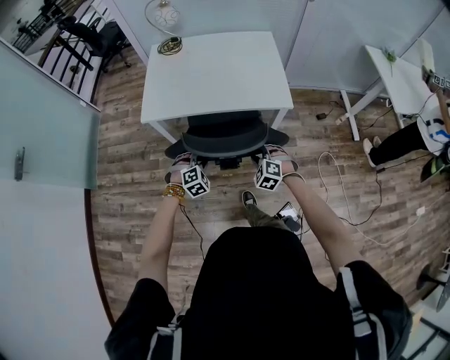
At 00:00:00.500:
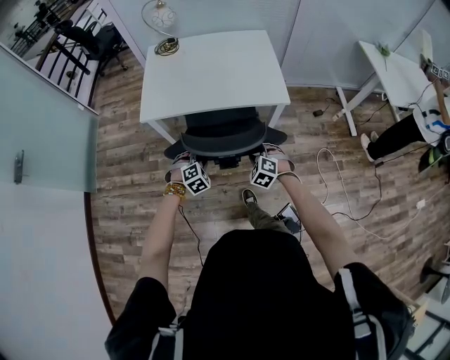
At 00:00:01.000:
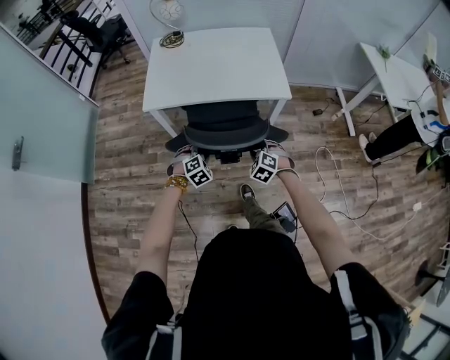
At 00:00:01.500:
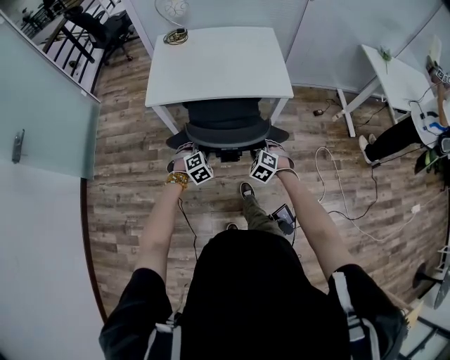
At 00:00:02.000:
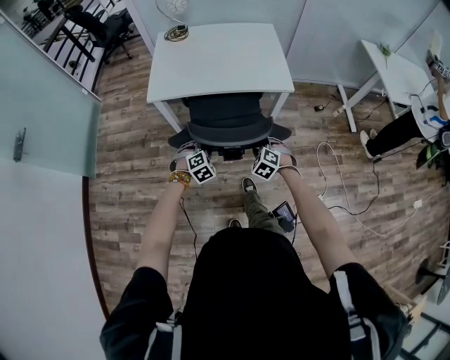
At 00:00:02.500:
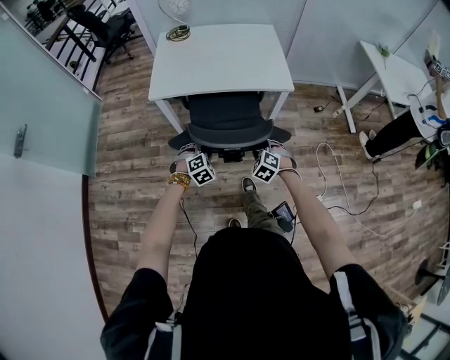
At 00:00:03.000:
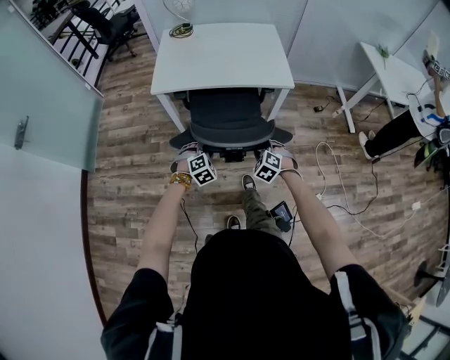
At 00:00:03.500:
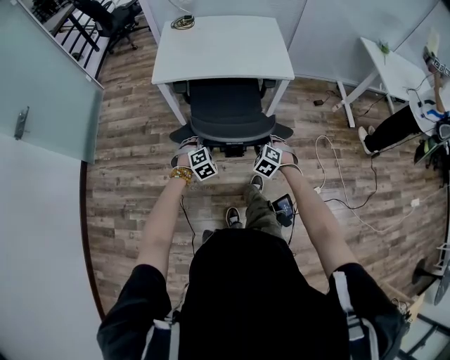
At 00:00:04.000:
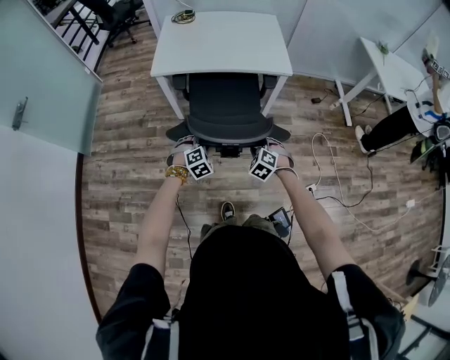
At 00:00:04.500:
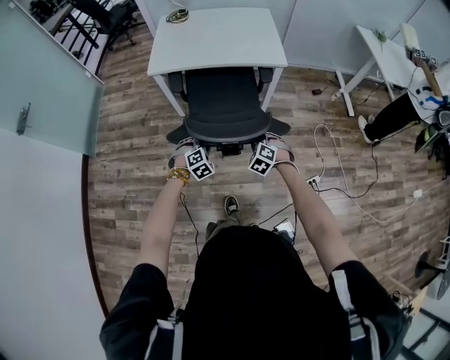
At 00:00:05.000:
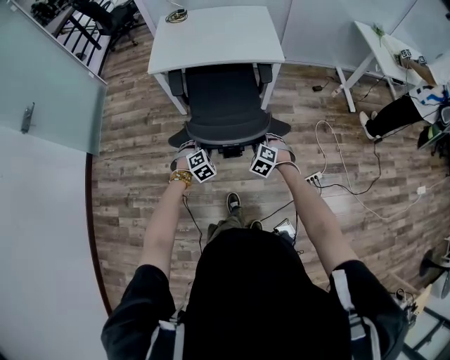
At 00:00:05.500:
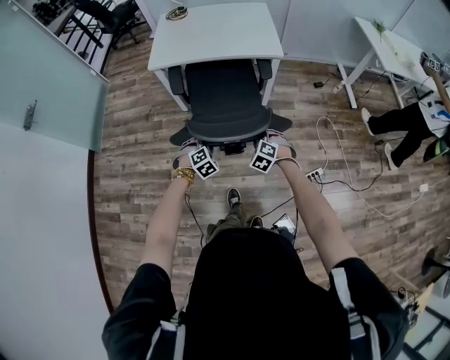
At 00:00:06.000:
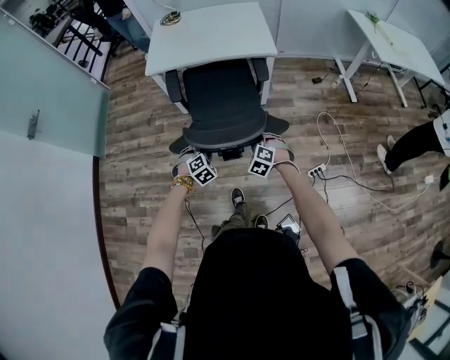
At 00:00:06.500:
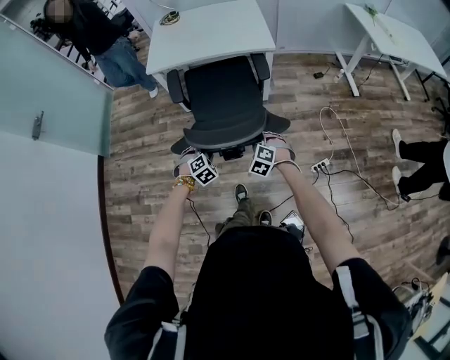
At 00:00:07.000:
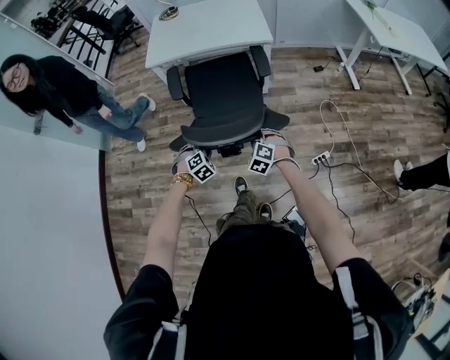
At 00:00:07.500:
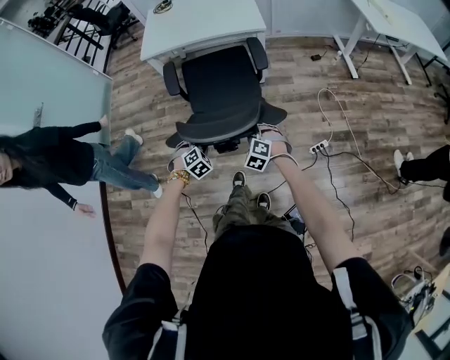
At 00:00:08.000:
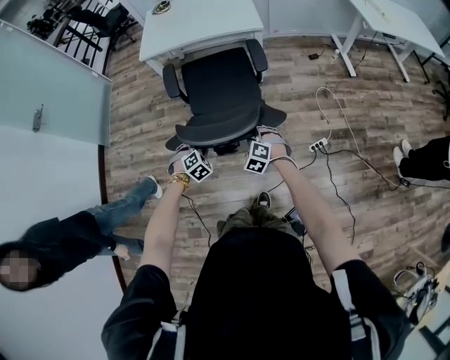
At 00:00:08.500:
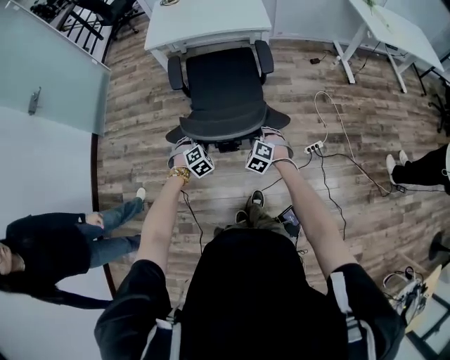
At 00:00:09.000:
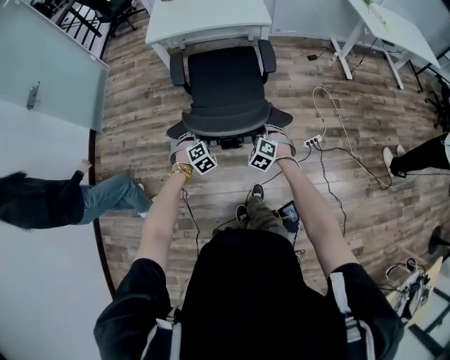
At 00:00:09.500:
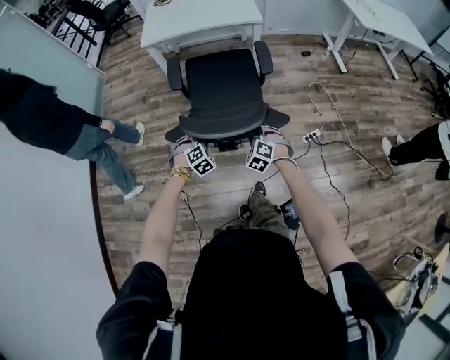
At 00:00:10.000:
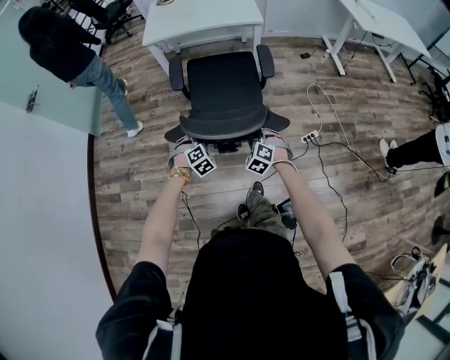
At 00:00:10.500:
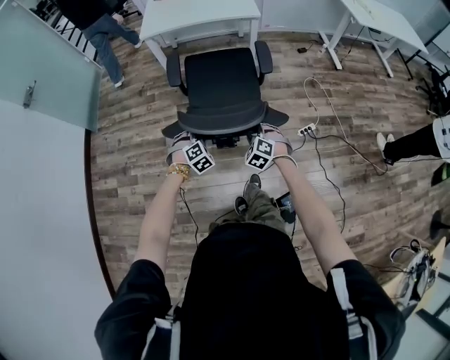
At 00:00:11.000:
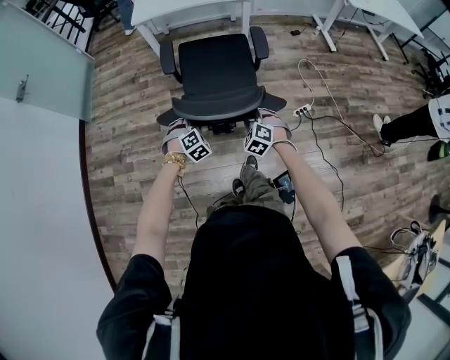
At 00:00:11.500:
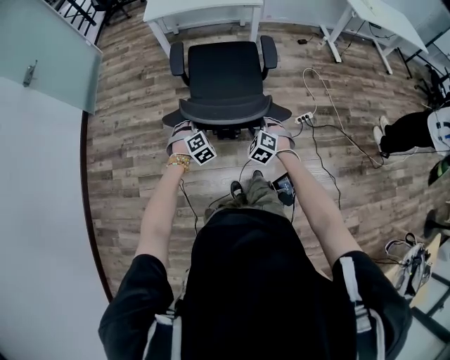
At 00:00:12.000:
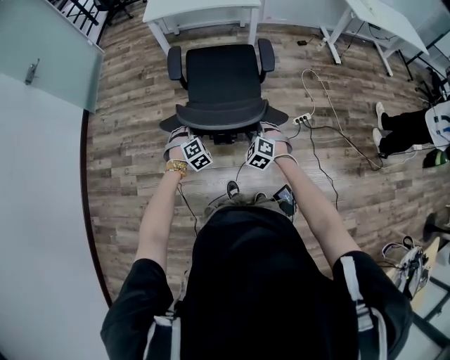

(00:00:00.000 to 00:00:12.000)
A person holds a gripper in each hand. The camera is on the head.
00:00:00.000 - 00:00:02.000: Both grippers travel together backward, approximately 10 cm.
00:00:02.000 - 00:00:04.000: The two grippers go some 10 cm backward.
00:00:04.000 - 00:00:06.000: Both grippers travel together backward and to the right, some 10 cm.
00:00:06.000 - 00:00:08.000: Both grippers move backward, approximately 15 cm.
00:00:08.000 - 00:00:10.000: Both grippers travel together backward, roughly 10 cm.
00:00:10.000 - 00:00:12.000: Both grippers travel together backward, approximately 15 cm.

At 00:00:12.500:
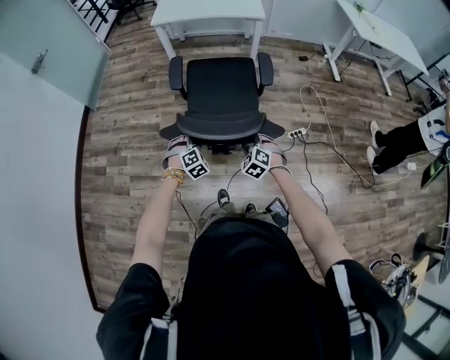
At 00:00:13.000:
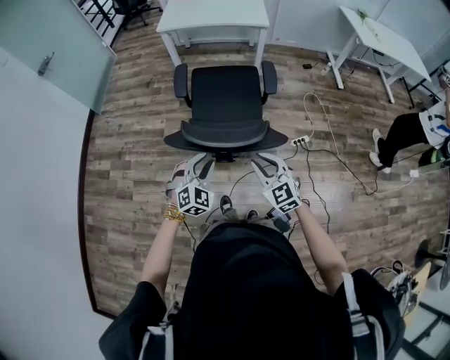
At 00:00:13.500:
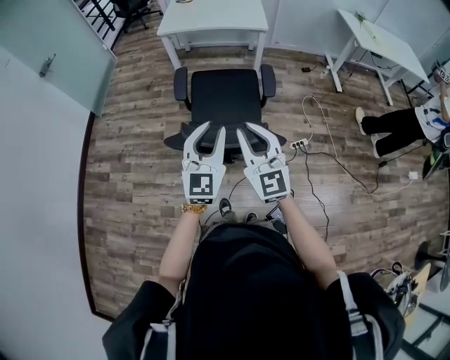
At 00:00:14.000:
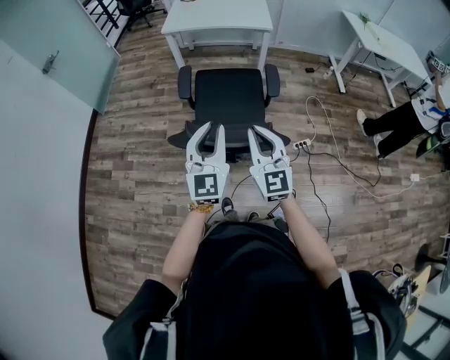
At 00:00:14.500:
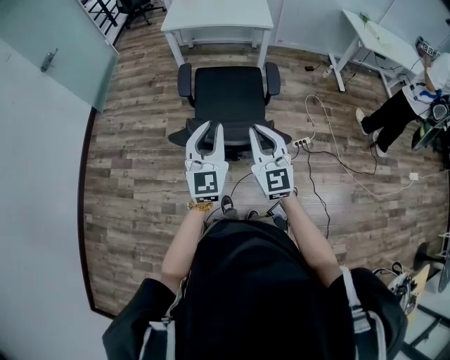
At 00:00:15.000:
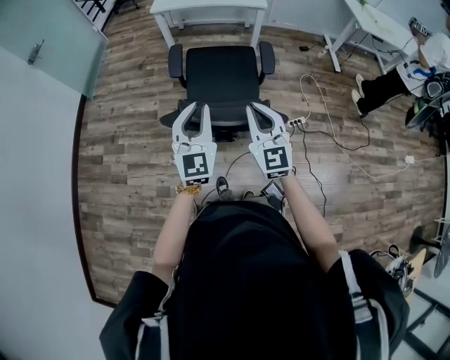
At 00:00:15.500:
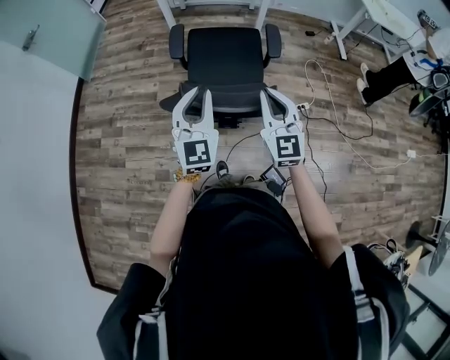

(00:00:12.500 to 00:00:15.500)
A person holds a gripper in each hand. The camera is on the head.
00:00:12.500 - 00:00:14.000: The grippers both shift upward by approximately 30 cm. The right gripper tilts its fingers approximately 50 degrees upward, and closes up; the left gripper angles its fingers upward, by approximately 60 degrees, and closes its fingers.
00:00:14.000 - 00:00:15.500: The left gripper moves about 5 cm.

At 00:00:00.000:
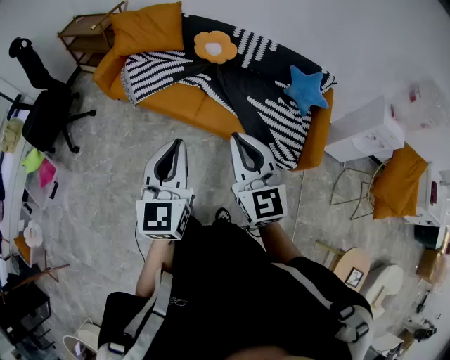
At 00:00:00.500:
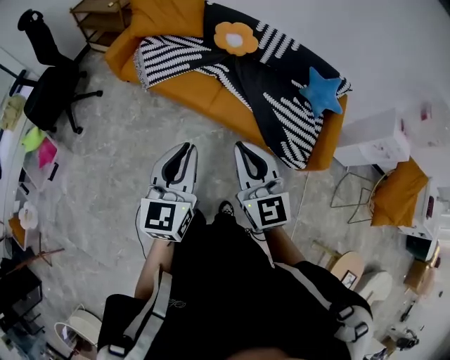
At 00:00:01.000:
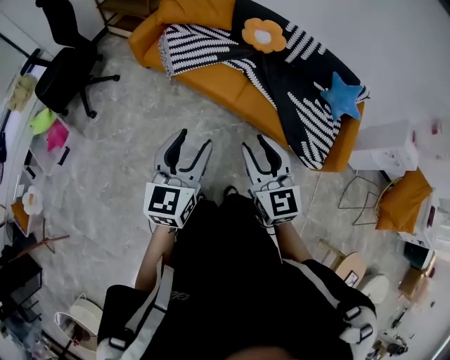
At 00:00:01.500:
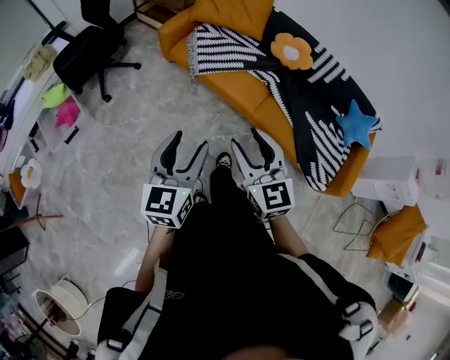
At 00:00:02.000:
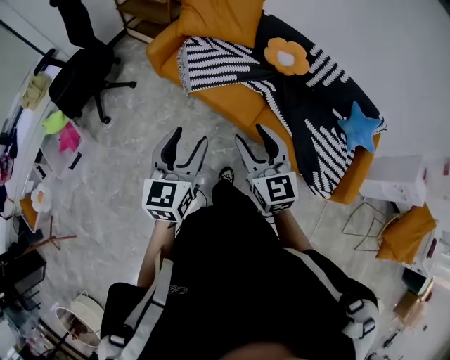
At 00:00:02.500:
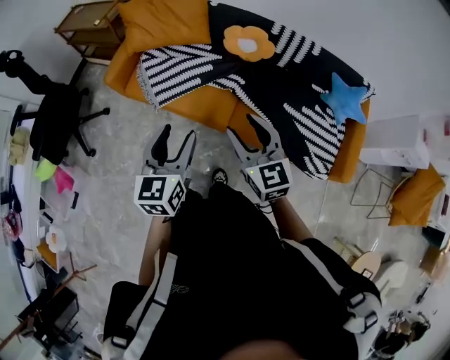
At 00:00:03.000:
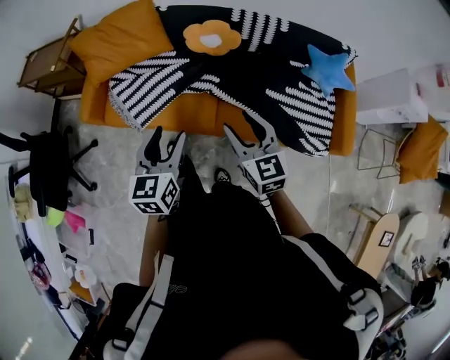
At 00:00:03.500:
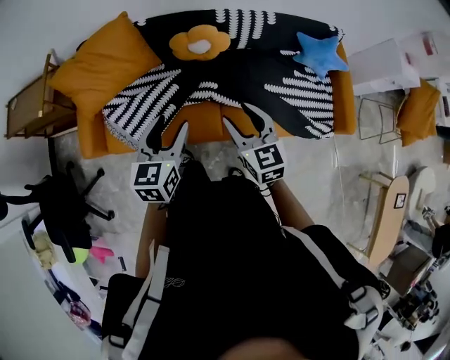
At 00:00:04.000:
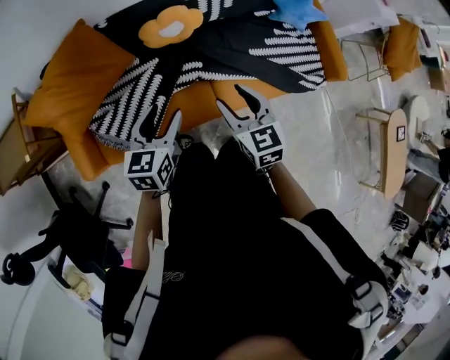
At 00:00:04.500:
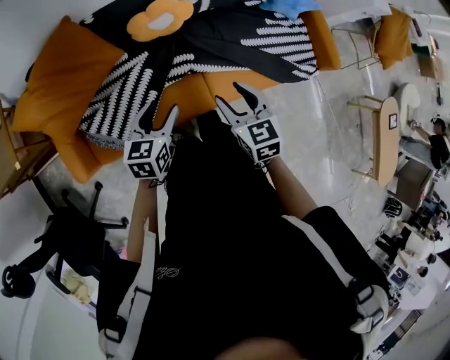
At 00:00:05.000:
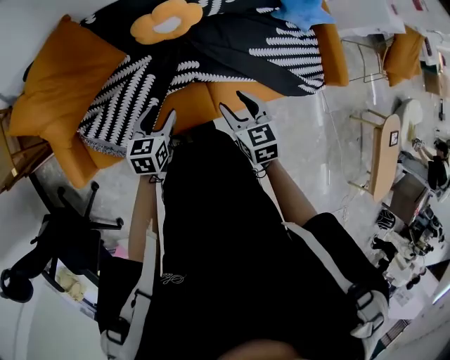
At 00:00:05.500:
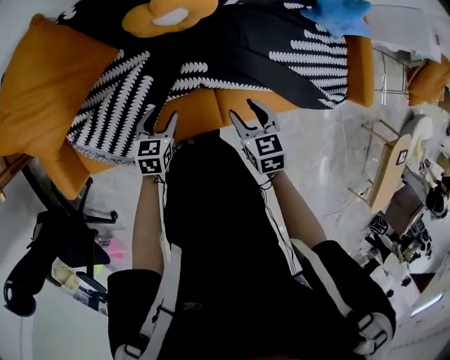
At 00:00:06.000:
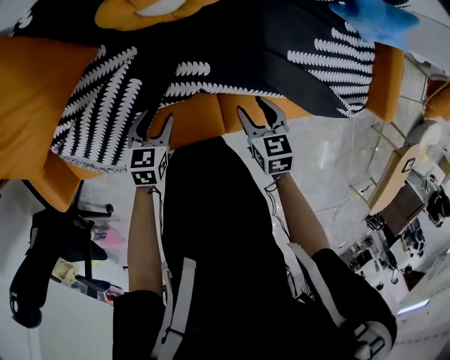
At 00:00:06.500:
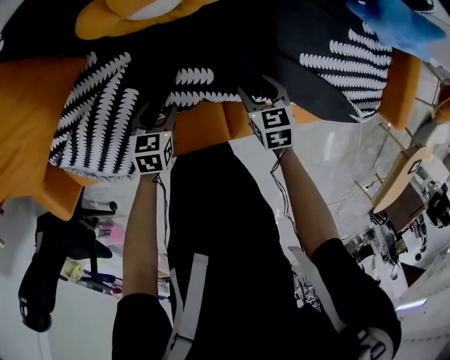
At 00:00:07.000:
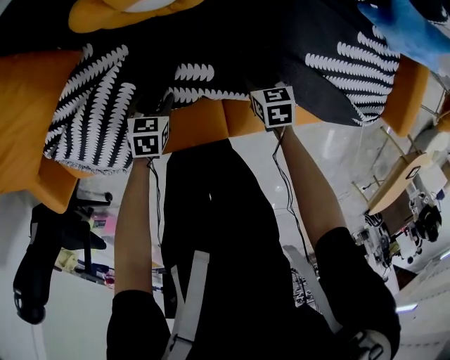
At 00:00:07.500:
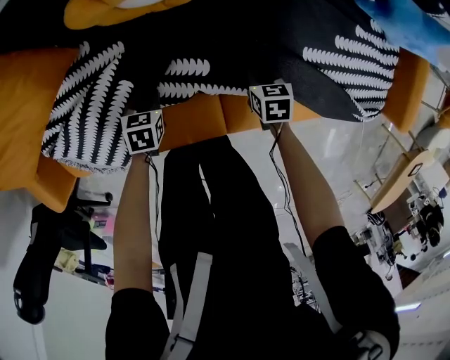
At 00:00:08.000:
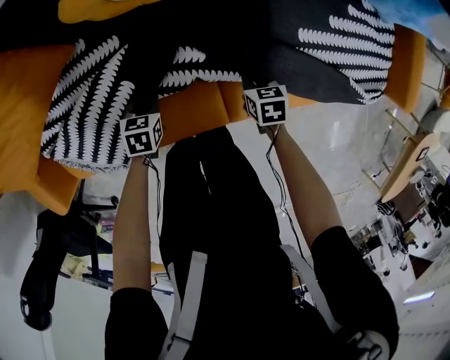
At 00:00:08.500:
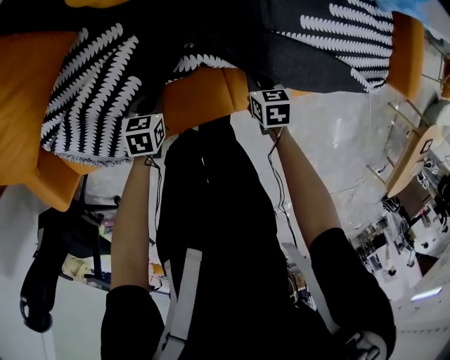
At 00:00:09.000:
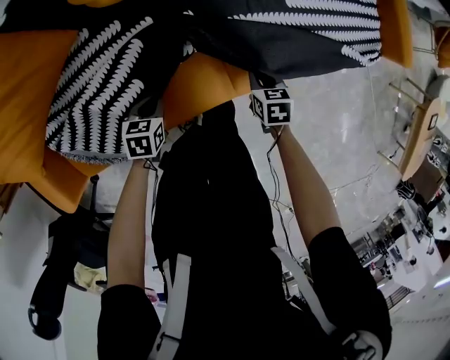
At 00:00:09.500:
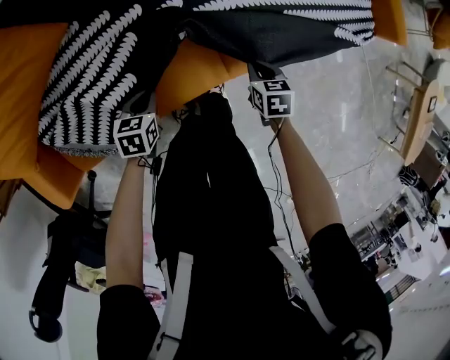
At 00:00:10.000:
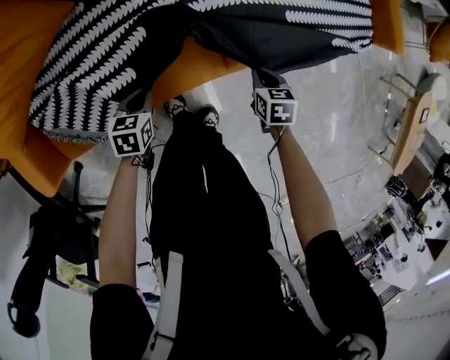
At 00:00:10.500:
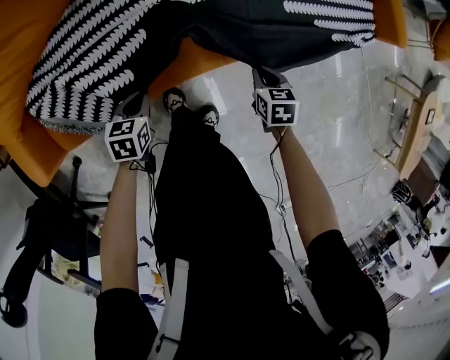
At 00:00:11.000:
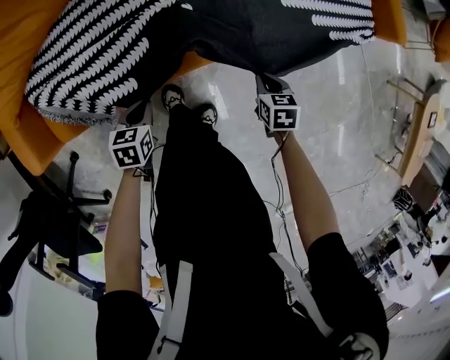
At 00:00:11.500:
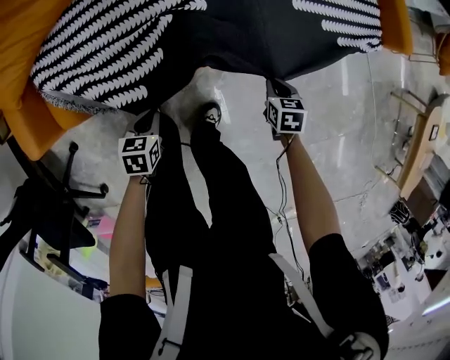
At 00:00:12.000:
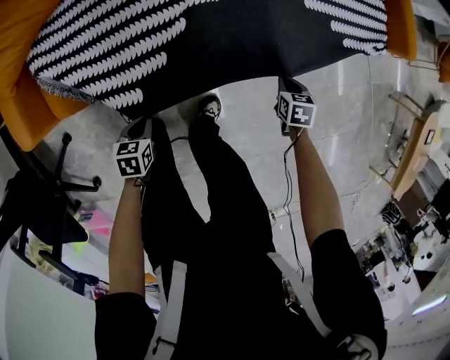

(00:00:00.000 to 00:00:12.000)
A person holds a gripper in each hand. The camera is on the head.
00:00:00.000 - 00:00:02.000: The two grippers go about 30 cm to the left and forward. The left gripper opens up, while the right gripper opens its fingers.
00:00:02.000 - 00:00:04.000: The right gripper ends up approximately 35 cm from where it was, and changes its angle by roughly 50 degrees; the left gripper changes place by some 50 cm, and changes its angle by about 60 degrees.
00:00:04.000 - 00:00:06.000: The grippers both shift downward by roughly 40 cm. The left gripper rotates some 30 degrees; the right gripper rotates some 30 degrees.
00:00:06.000 - 00:00:08.000: The grippers both shift downward by some 15 cm. The left gripper closes its fingers. Meanwhile the right gripper closes.
00:00:08.000 - 00:00:10.000: The right gripper goes roughly 20 cm backward; the left gripper travels backward and upward by about 15 cm.
00:00:10.000 - 00:00:12.000: The left gripper heads backward, covering approximately 20 cm; the right gripper heads to the right and backward, covering approximately 10 cm.
